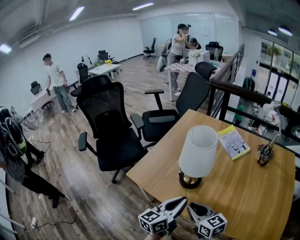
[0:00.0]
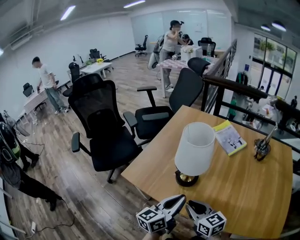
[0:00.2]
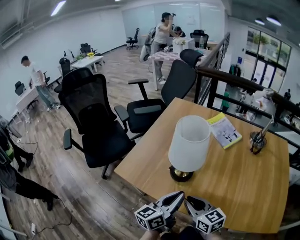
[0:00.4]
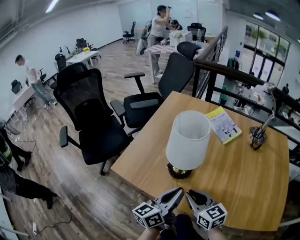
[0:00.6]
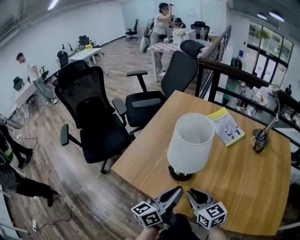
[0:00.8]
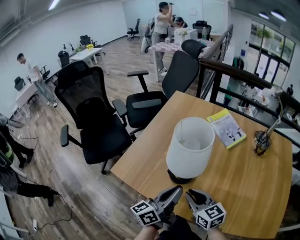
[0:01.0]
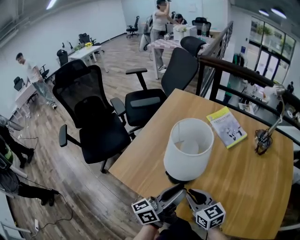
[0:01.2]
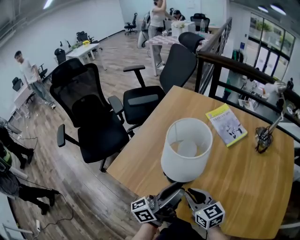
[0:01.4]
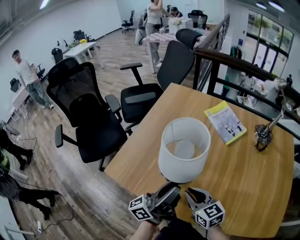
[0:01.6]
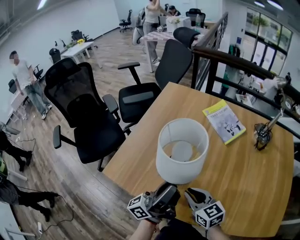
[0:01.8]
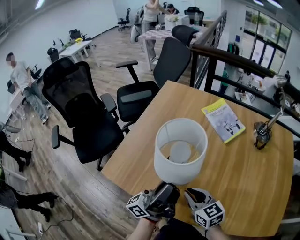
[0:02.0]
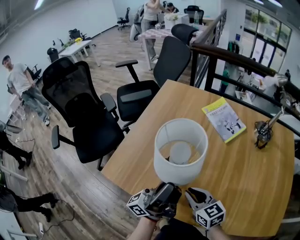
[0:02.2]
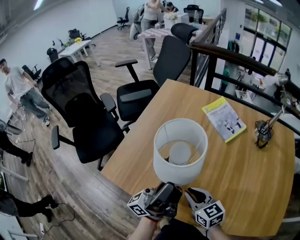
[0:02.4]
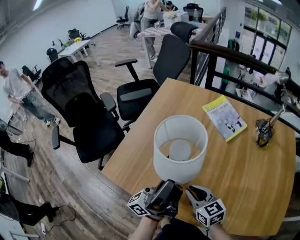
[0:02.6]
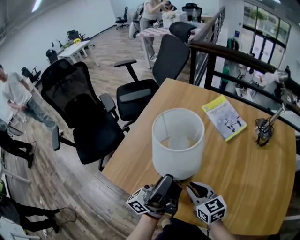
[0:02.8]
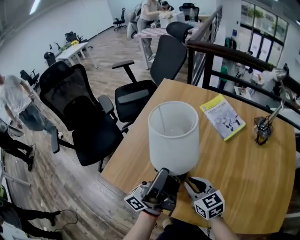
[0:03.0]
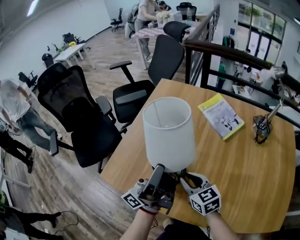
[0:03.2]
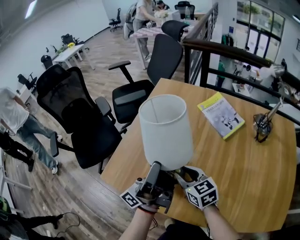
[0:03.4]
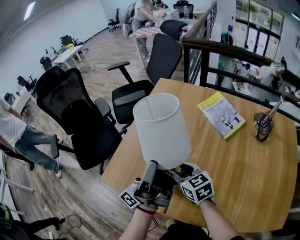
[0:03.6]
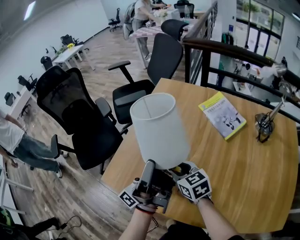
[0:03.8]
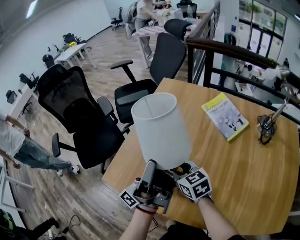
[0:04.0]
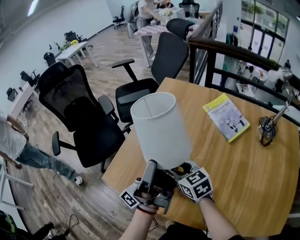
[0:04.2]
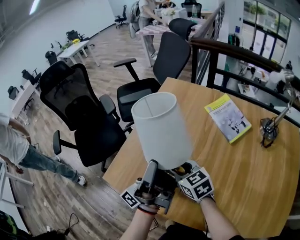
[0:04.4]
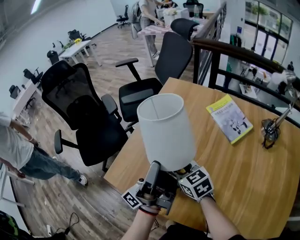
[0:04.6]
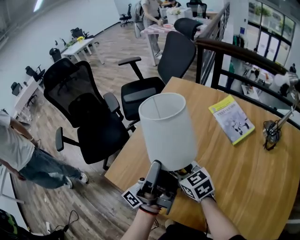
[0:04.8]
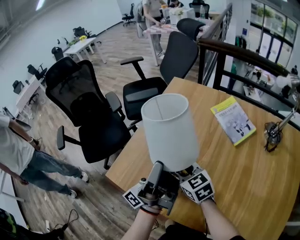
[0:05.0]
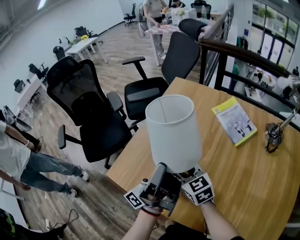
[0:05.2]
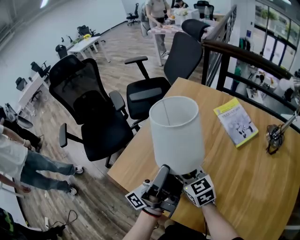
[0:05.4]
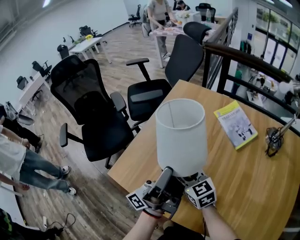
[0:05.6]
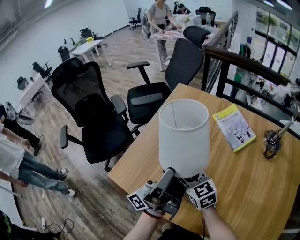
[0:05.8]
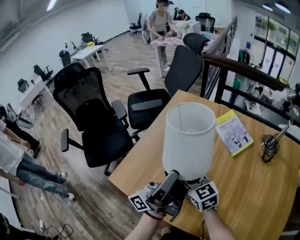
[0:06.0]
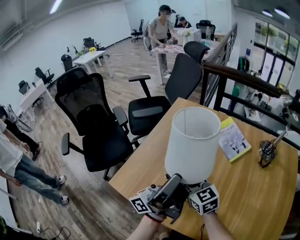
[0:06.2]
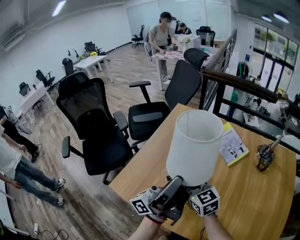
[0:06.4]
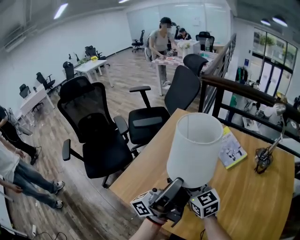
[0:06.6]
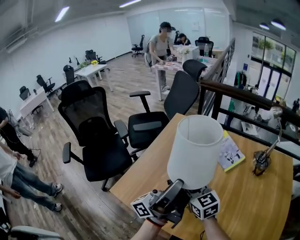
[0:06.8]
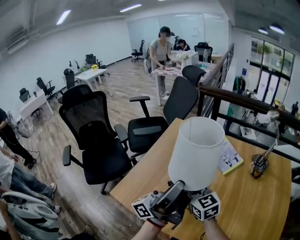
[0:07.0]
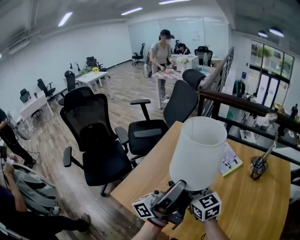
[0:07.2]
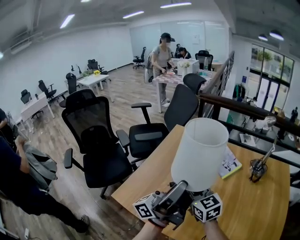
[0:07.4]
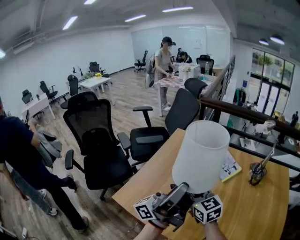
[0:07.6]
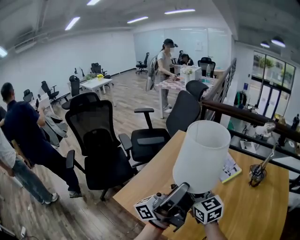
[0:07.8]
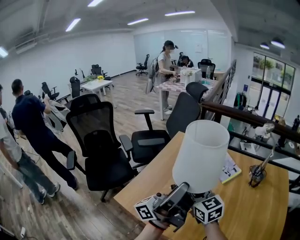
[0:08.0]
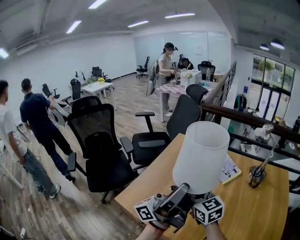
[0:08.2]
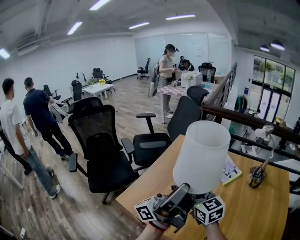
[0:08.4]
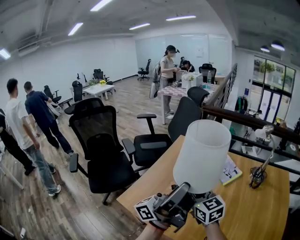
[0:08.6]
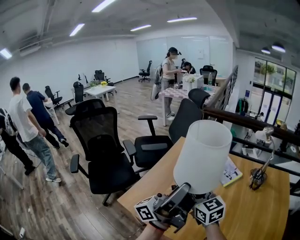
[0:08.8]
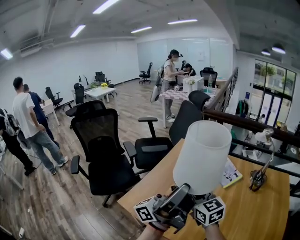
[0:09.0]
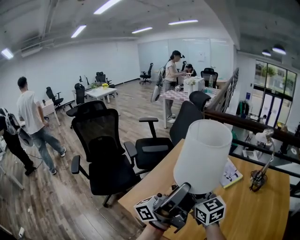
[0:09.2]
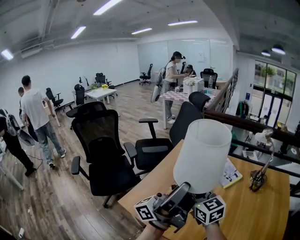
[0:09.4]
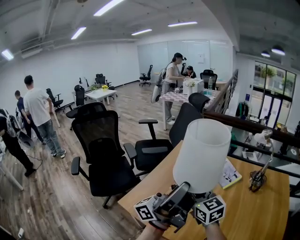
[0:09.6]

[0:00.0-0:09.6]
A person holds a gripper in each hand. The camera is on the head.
0:00.0 to 0:01.6: Both grippers travel together forward, approximately 10 cm. The left gripper points its fingers some 30 degrees further upward, and opens up.
0:01.6 to 0:03.2: The left gripper heads forward and upward, covering some 10 cm. The right gripper shifts approximately 5 cm forward.
0:03.2 to 0:04.8: The right gripper goes roughly 10 cm forward and to the left.
0:04.8 to 0:06.4: The left gripper travels upward and to the right by roughly 10 cm, while the right gripper heads upward, covering roughly 10 cm.
0:06.4 to 0:08.0: The right gripper heads upward, covering about 10 cm; the left gripper shifts some 10 cm upward and backward.
0:08.0 to 0:09.6: The grippers move only a little.

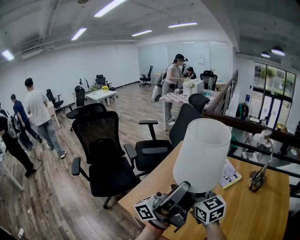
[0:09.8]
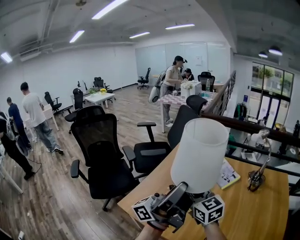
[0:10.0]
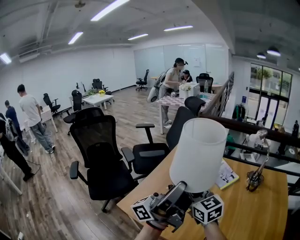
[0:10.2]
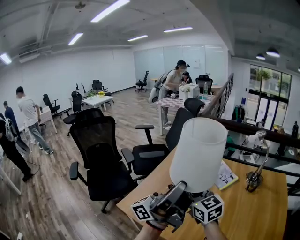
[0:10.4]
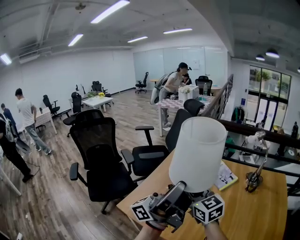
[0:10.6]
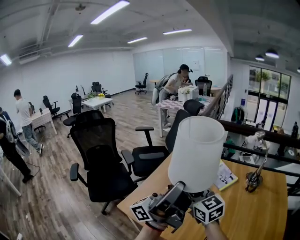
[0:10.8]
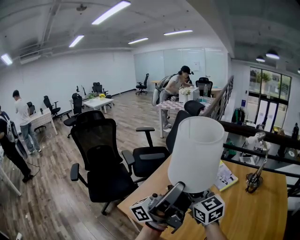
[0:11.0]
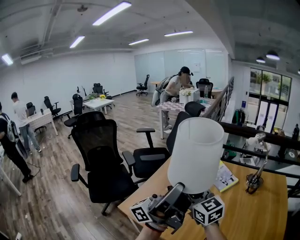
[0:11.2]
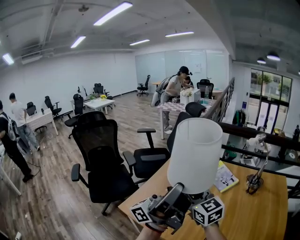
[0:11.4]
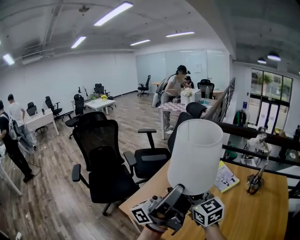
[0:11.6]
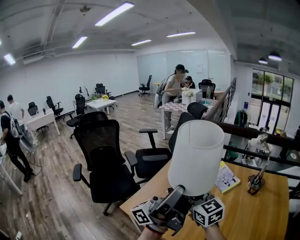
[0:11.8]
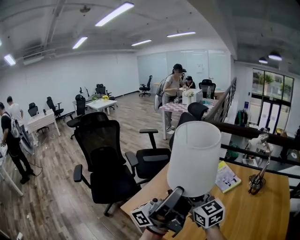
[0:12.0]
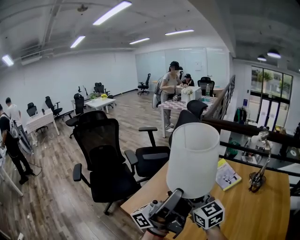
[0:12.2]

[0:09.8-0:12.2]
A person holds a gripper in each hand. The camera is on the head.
0:09.8 to 0:12.2: The grippers stay close to where they were, moving slightly.

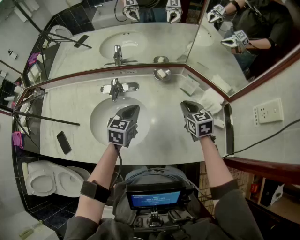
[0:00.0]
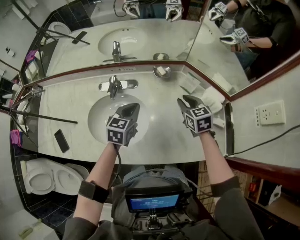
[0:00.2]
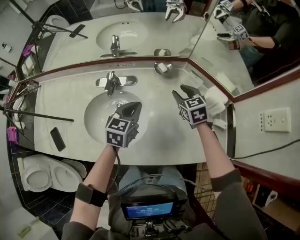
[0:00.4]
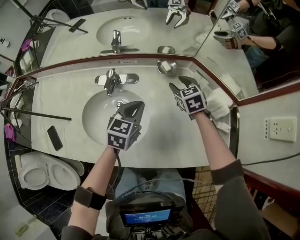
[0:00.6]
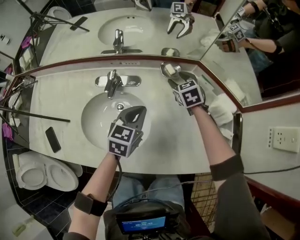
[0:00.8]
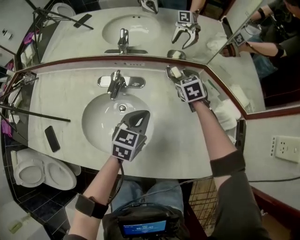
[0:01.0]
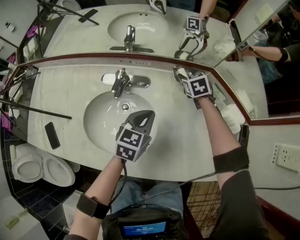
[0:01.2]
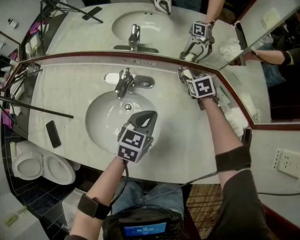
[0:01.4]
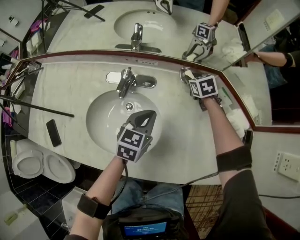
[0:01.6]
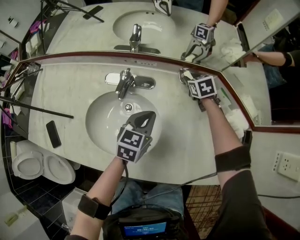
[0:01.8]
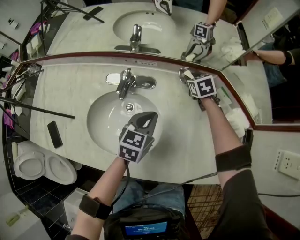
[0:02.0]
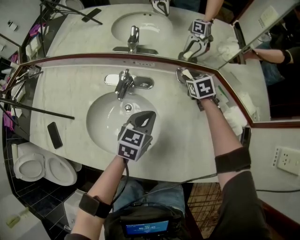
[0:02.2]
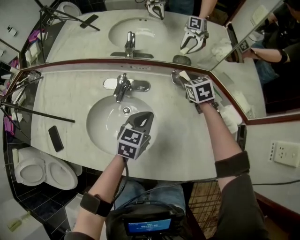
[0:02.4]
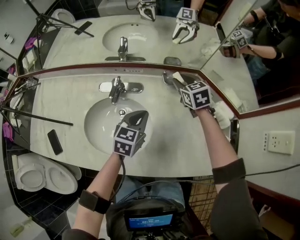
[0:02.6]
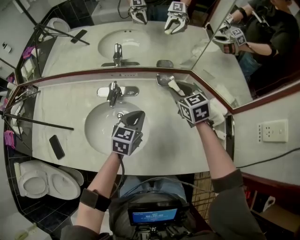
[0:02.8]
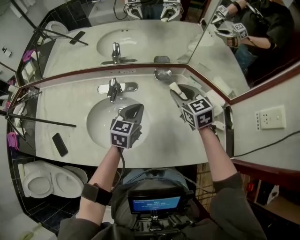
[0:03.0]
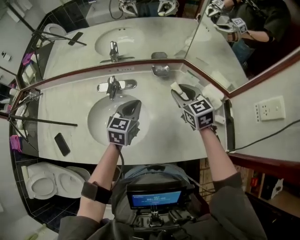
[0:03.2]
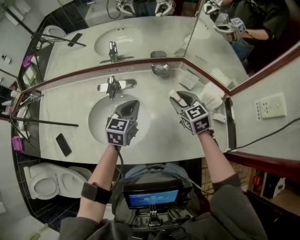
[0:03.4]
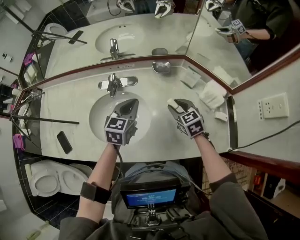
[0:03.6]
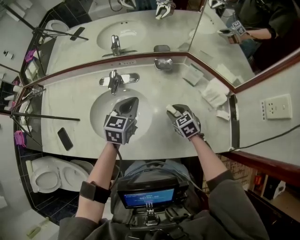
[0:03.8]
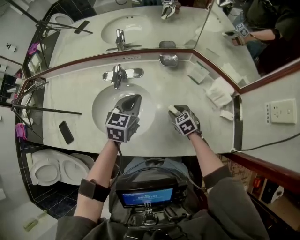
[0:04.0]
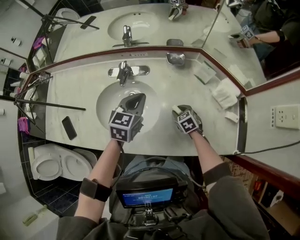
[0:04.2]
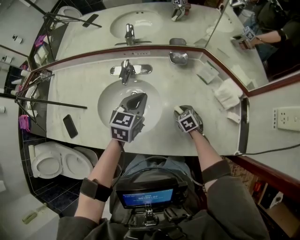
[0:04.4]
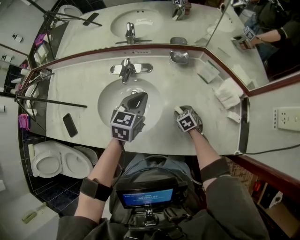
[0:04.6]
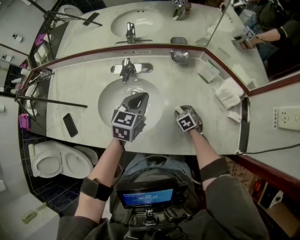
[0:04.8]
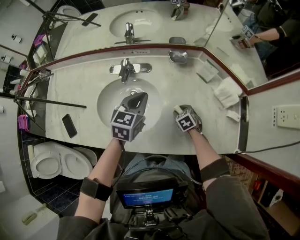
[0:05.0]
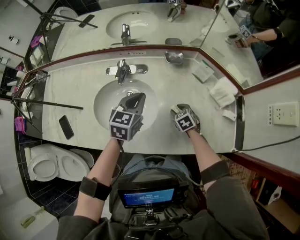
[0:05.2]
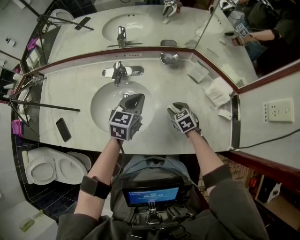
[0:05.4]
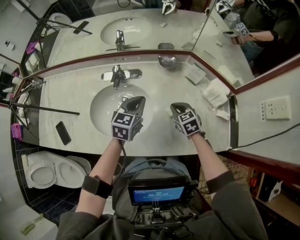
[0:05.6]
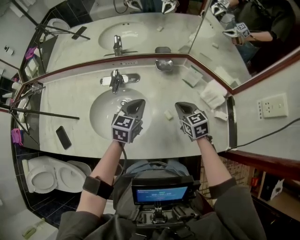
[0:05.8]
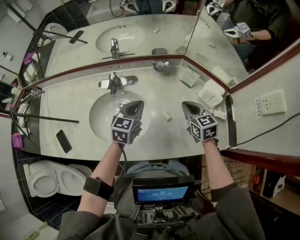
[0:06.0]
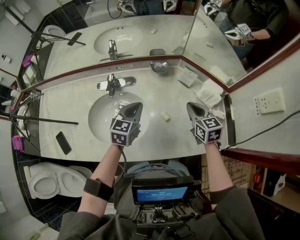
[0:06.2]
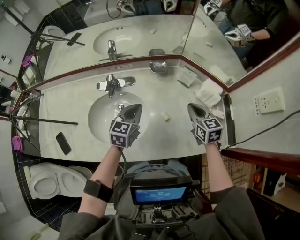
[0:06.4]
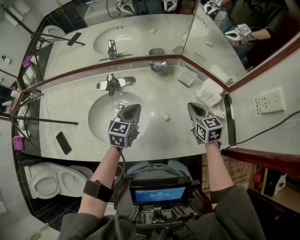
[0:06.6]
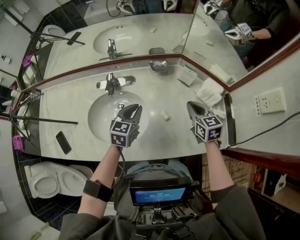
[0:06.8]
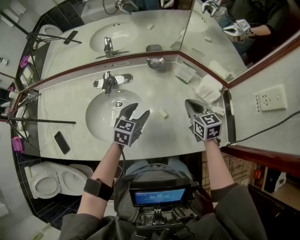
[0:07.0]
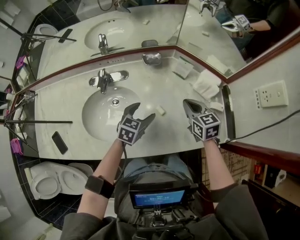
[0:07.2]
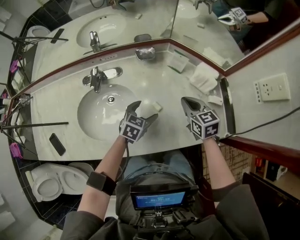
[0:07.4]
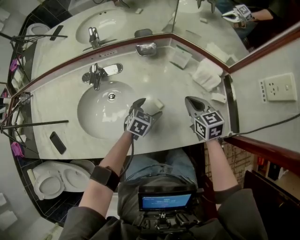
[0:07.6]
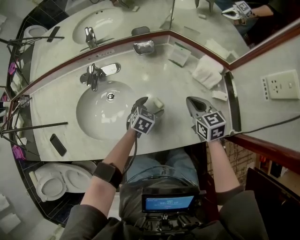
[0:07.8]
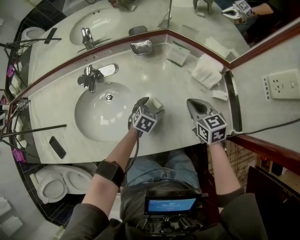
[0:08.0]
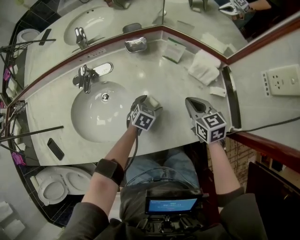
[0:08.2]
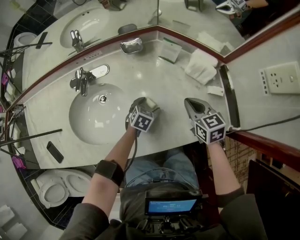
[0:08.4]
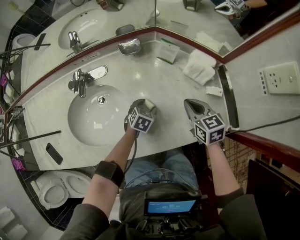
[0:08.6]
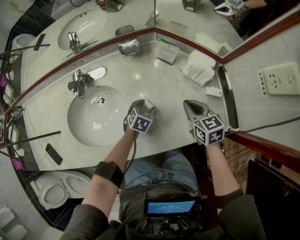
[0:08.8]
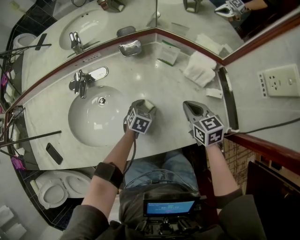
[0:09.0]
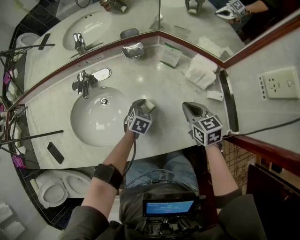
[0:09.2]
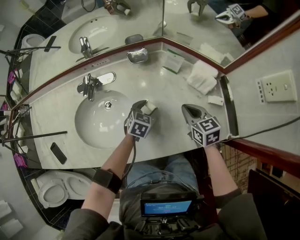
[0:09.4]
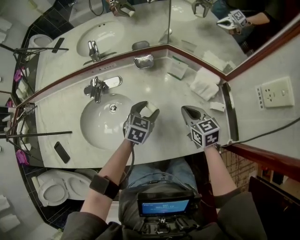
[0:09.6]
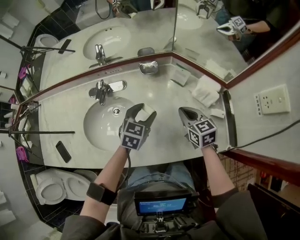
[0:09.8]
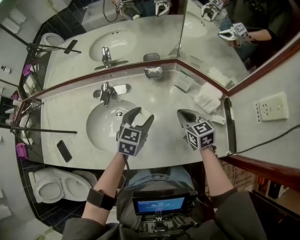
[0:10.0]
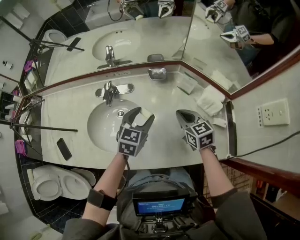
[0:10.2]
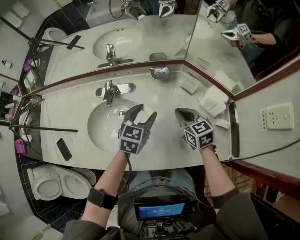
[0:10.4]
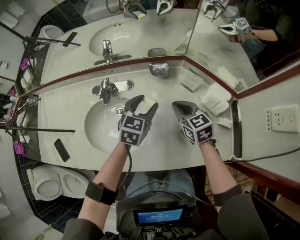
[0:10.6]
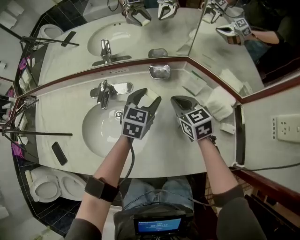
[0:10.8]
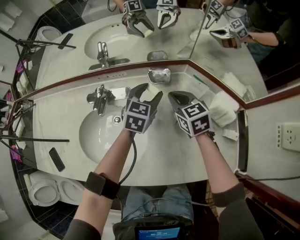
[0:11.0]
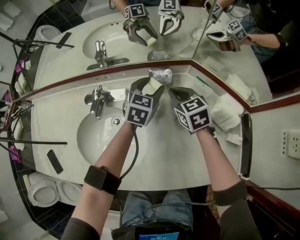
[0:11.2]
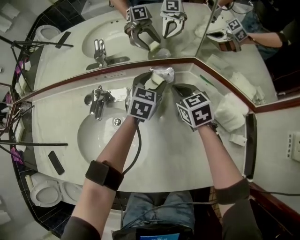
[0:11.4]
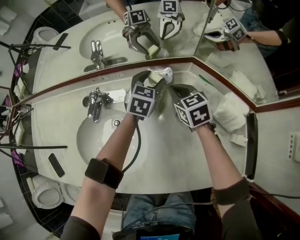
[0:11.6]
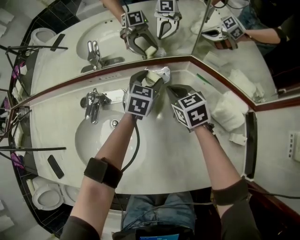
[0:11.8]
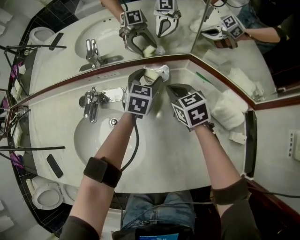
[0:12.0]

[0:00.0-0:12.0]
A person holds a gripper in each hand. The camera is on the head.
0:00.0 to 0:01.6: The left gripper heads downward and forward, covering some 10 cm, while the right gripper shifts approximately 30 cm forward and downward, changes its angle by roughly 20 degrees, and opens its fingers.
0:01.6 to 0:03.0: The left gripper heads upward, covering approximately 10 cm; the right gripper shifts some 25 cm upward and backward, and rotates some 20 degrees.
0:03.0 to 0:04.4: The right gripper is displaced downward and backward by roughly 30 cm, and turns by some 30 degrees.
0:04.4 to 0:06.0: The right gripper is displaced upward by roughly 20 cm, swivels roughly 30 degrees, and closes.
0:06.0 to 0:07.6: The left gripper heads downward and to the right, covering approximately 20 cm, turns by about 30 degrees, and opens up. Meanwhile the right gripper goes about 5 cm to the right.
0:07.6 to 0:09.0: The right gripper moves some 5 cm; the left gripper moves downward, some 10 cm.
0:09.0 to 0:10.4: The right gripper travels to the left, forward and upward by approximately 15 cm; the left gripper moves upward, approximately 25 cm, and changes its angle by approximately 30 degrees.
0:10.4 to 0:12.0: Both grippers move forward and downward, roughly 25 cm.
